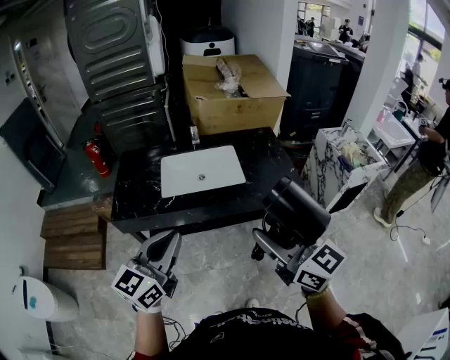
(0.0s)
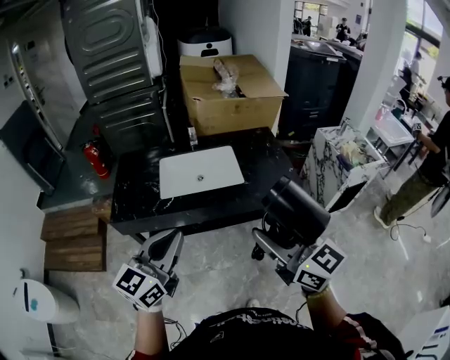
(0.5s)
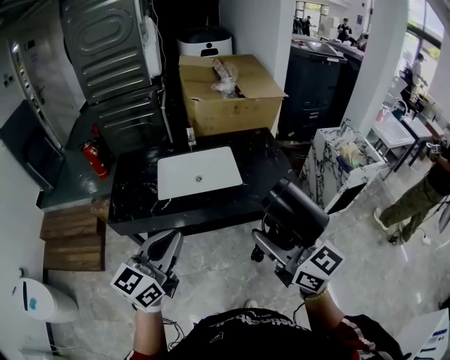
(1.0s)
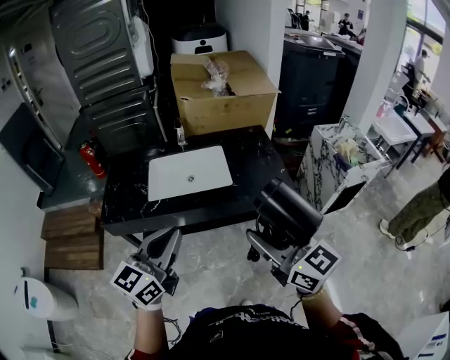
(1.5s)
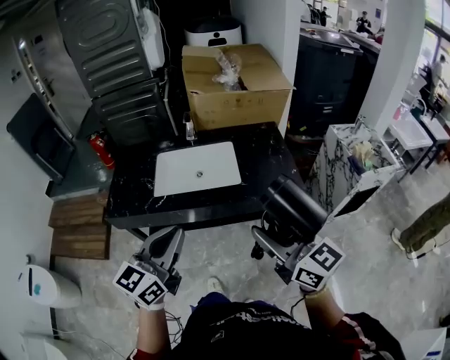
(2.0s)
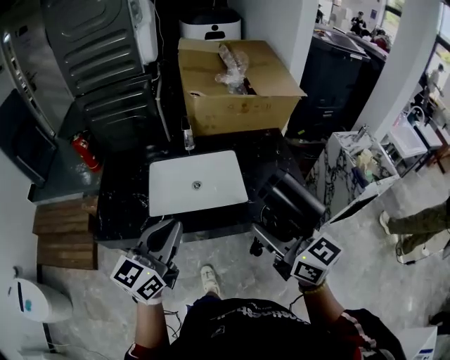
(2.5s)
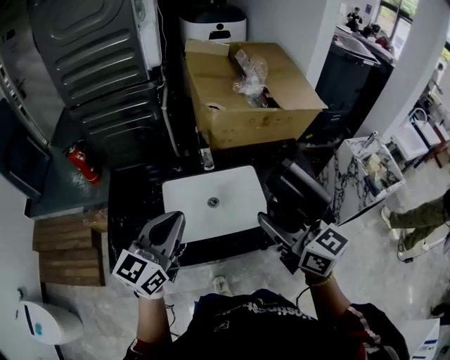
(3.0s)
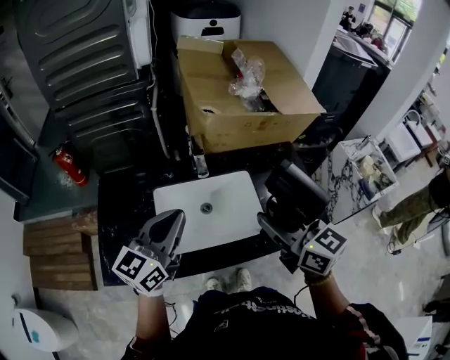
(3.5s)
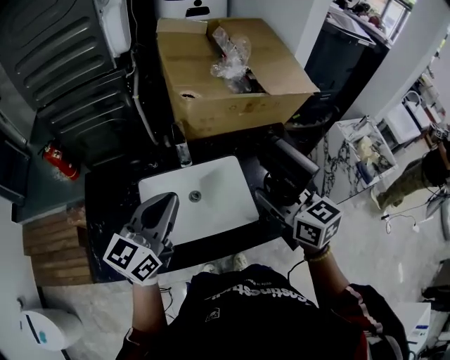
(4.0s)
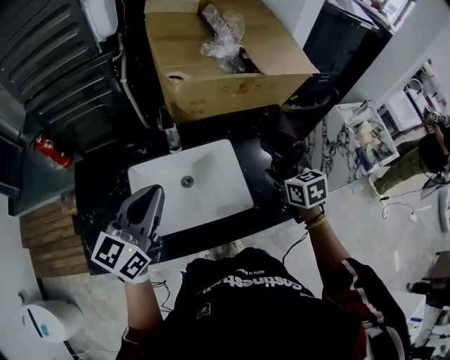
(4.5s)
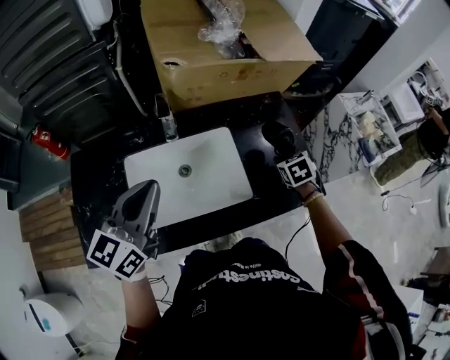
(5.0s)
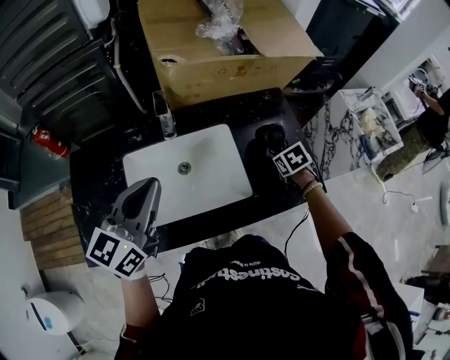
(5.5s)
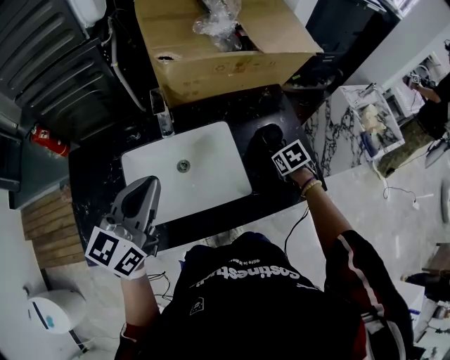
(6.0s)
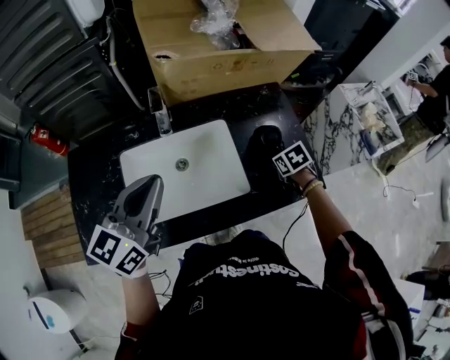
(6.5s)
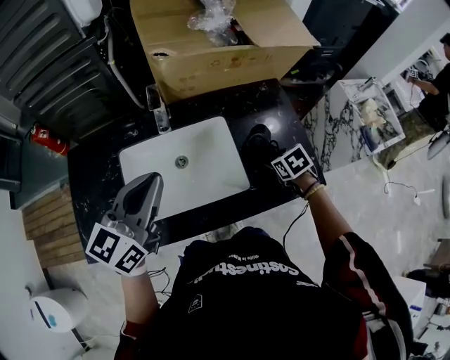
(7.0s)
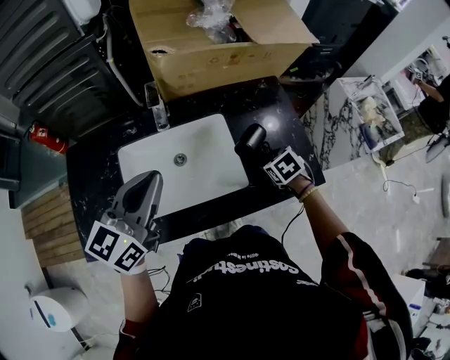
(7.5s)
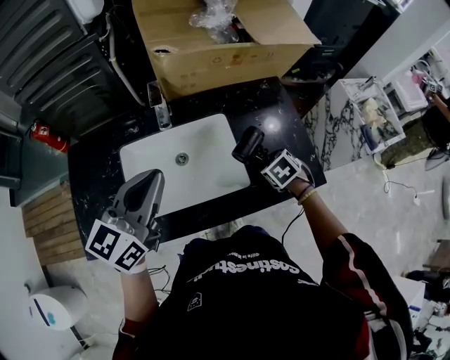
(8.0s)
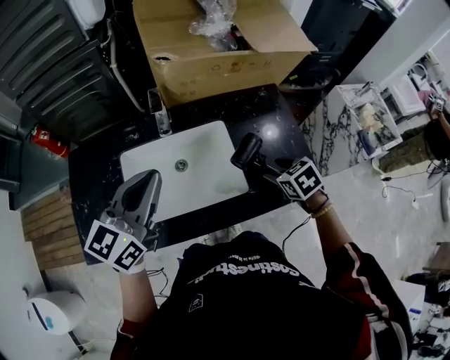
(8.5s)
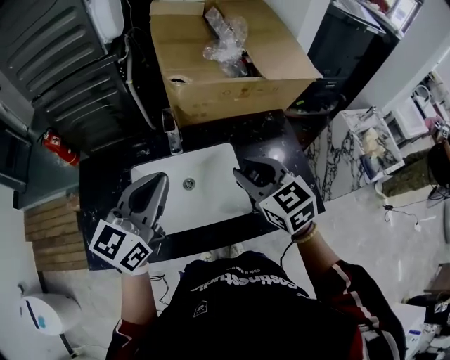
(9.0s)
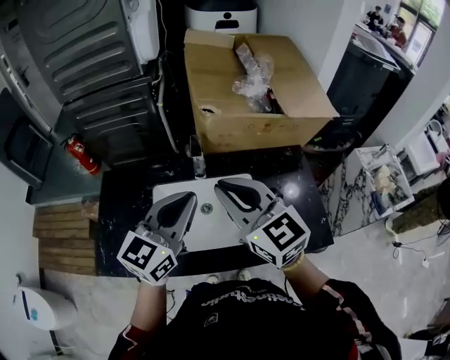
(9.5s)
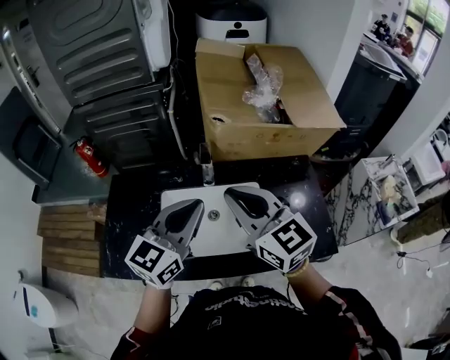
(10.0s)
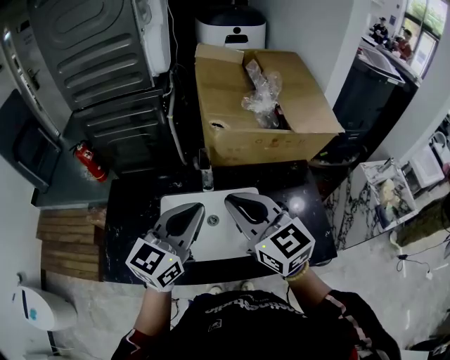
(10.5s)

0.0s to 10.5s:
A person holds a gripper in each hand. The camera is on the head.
0.0s to 2.0s: The left gripper travels to the right by about 10 cm. The right gripper travels to the right and forward by some 10 cm.
2.0s to 4.0s: The pair of grippers is taken forward, about 40 cm. The right gripper changes its angle by roughly 20 degrees.
4.0s to 6.5s: The right gripper is displaced downward and to the right by approximately 30 cm, and tilts its fingers roughly 50 degrees downward.
6.5s to 8.5s: The right gripper heads upward and backward, covering roughly 10 cm.
8.5s to 10.5s: The right gripper travels upward and to the left by some 35 cm, tips its fingers upward by some 50 degrees, and closes its fingers. Meanwhile the left gripper travels upward by roughly 5 cm.

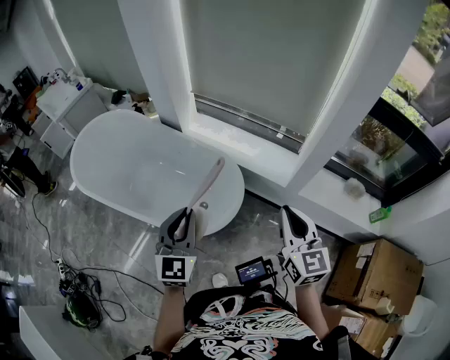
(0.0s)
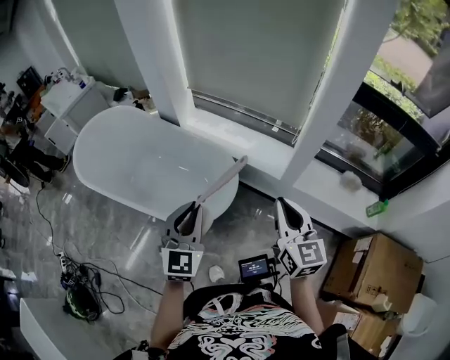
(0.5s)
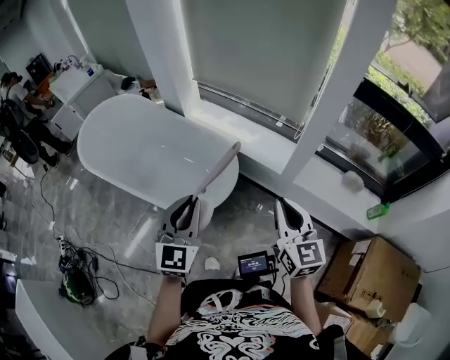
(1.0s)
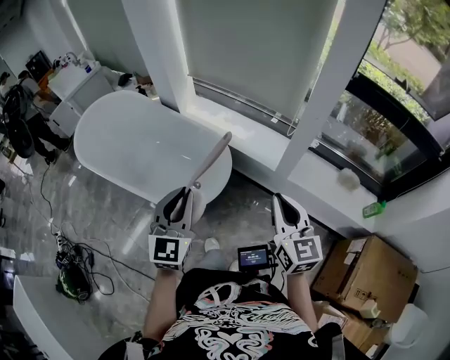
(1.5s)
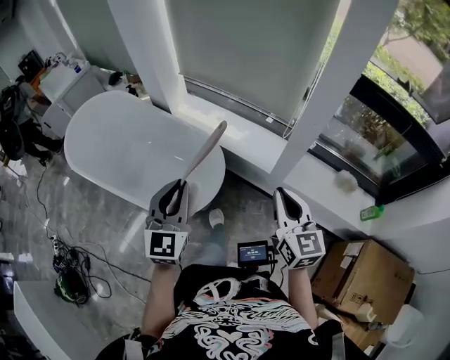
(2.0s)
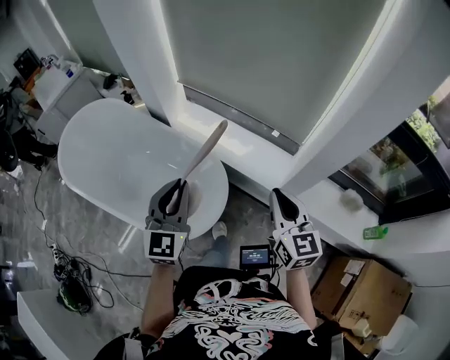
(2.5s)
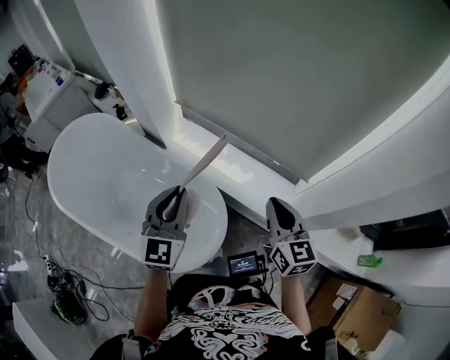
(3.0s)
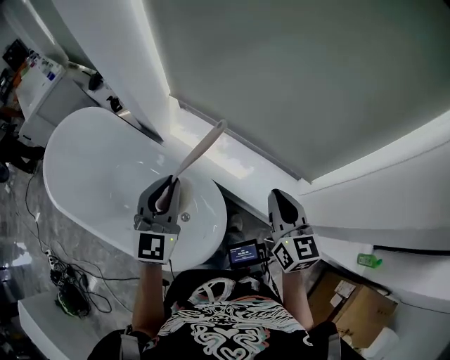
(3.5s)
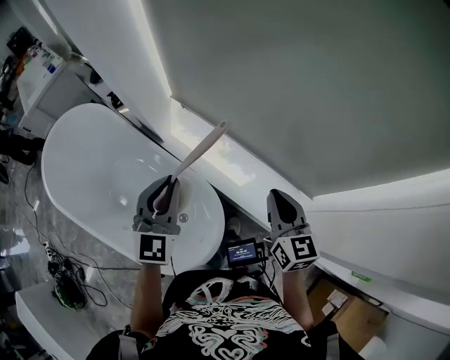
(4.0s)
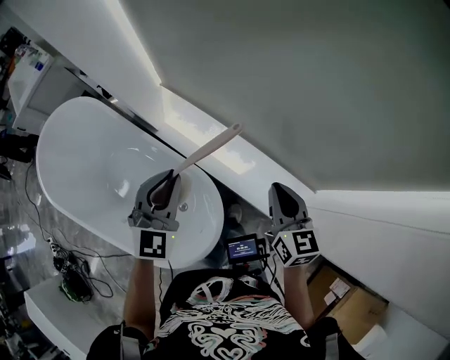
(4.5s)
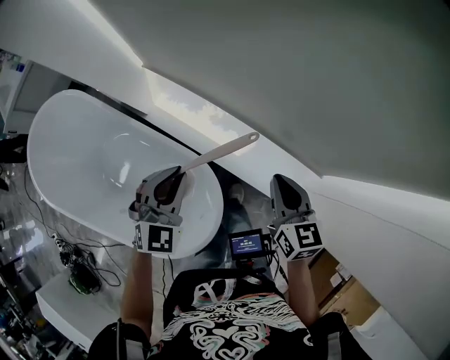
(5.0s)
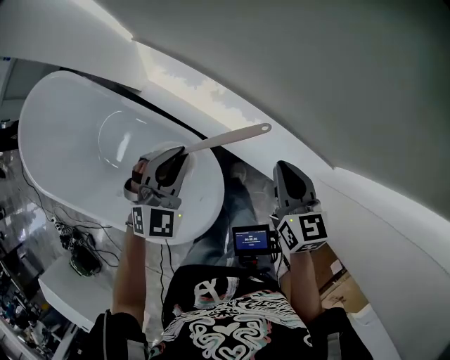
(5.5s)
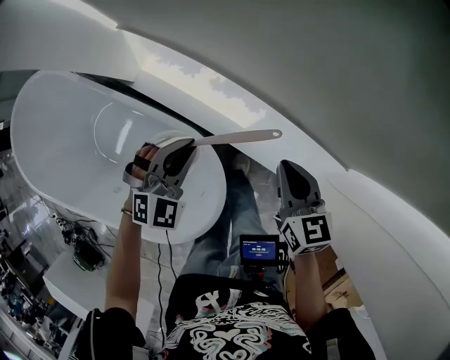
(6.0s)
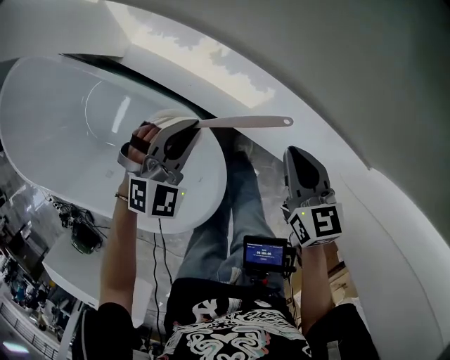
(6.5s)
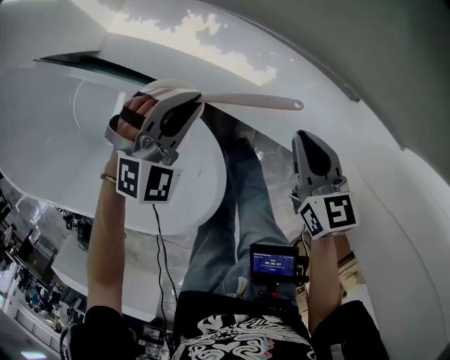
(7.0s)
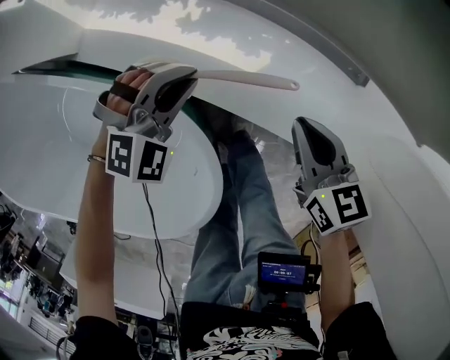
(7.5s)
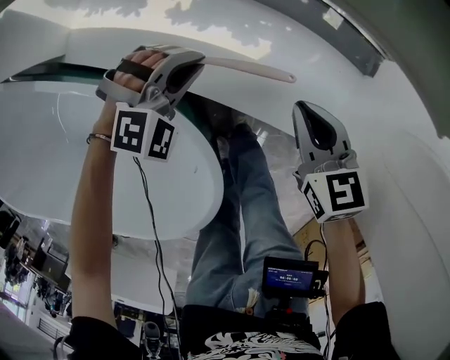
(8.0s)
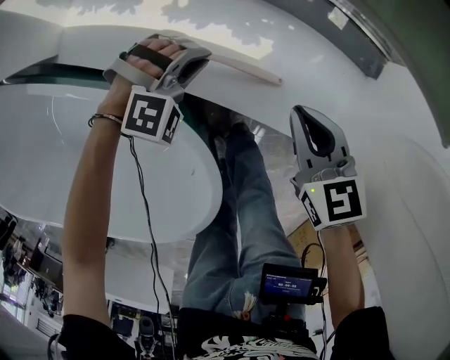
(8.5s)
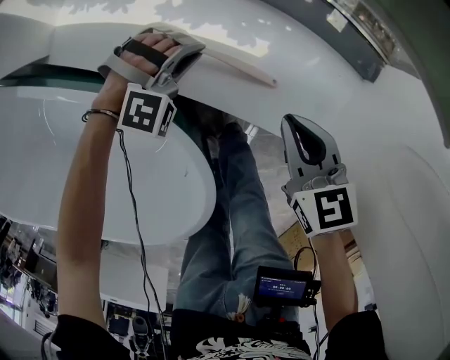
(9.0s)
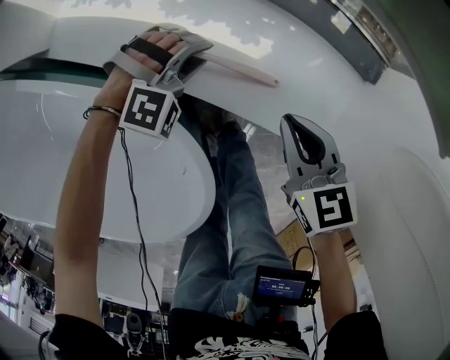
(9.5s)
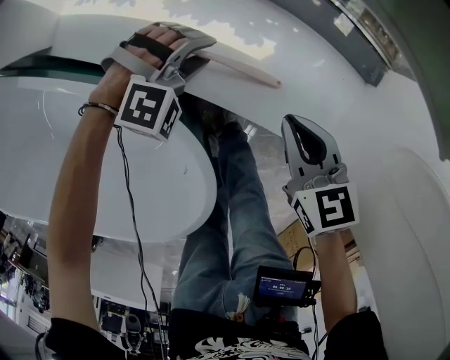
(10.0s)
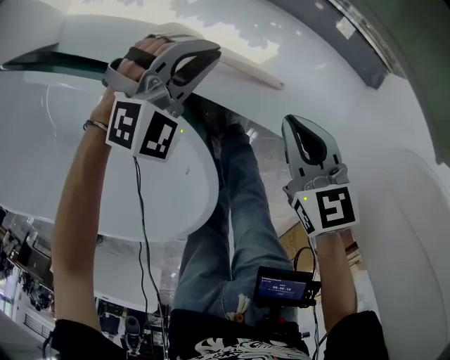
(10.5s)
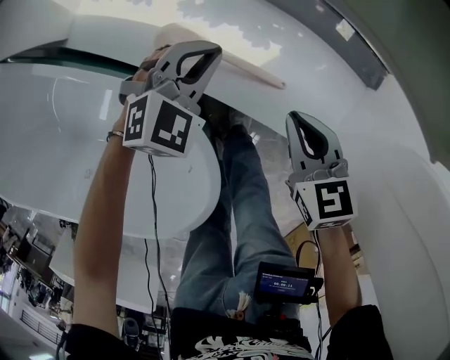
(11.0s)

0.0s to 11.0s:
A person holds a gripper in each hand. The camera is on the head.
0.0s to 2.0s: The grippers both shift to the right by some 15 cm.
2.0s to 3.5s: The two grippers travel together, forward, roughly 40 cm.
3.5s to 5.5s: Both grippers move downward and forward, some 25 cm. The left gripper rotates approximately 40 degrees.
5.5s to 7.5s: The two grippers go approximately 25 cm downward. The left gripper turns by about 30 degrees.
7.5s to 9.0s: The right gripper shifts about 5 cm downward. Meanwhile the left gripper goes roughly 15 cm downward, and rotates some 20 degrees.
9.0s to 11.0s: The left gripper moves upward, approximately 10 cm, twists approximately 50 degrees counterclockwise, seen from behind, and opens and closes again.

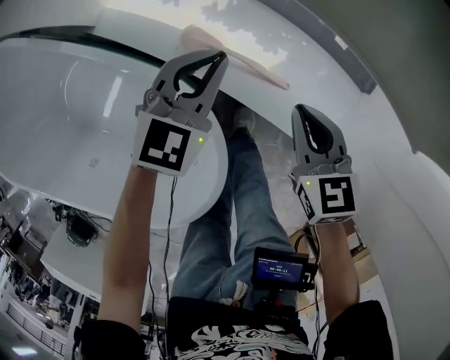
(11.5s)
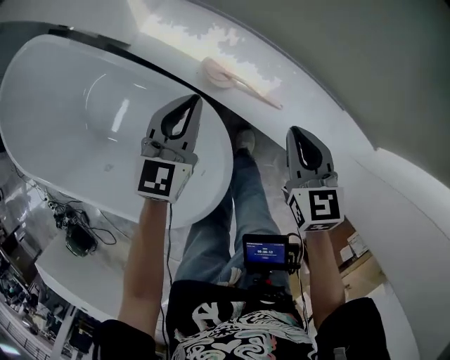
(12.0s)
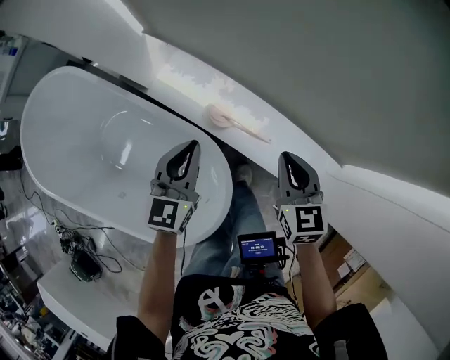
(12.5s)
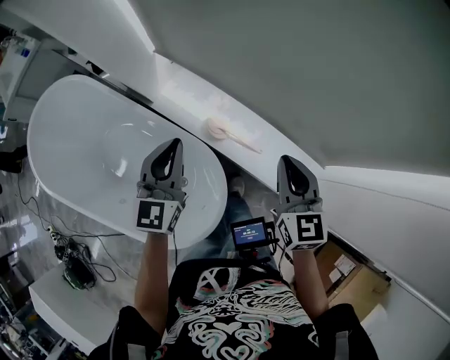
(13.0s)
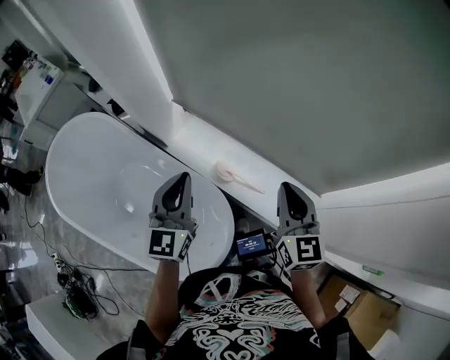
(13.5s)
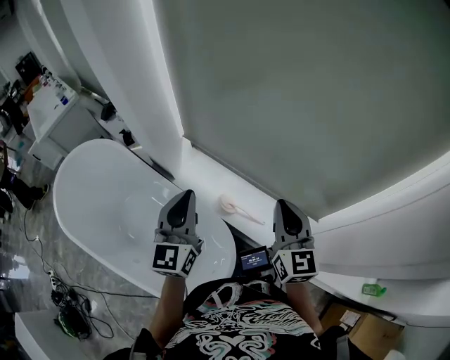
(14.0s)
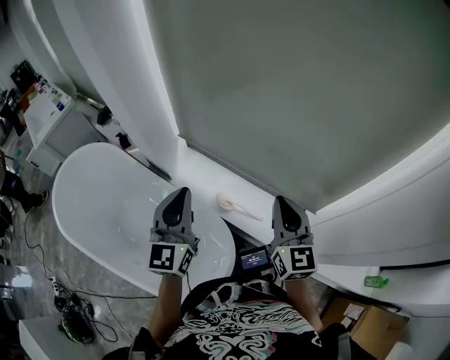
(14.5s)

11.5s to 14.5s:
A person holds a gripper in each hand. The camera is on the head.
11.5s to 13.0s: The right gripper is displaced upward by roughly 35 cm, and swivels about 20 degrees, while the left gripper goes approximately 35 cm upward and to the left, and rotates about 30 degrees.
13.0s to 14.5s: The two grippers go approximately 20 cm upward.

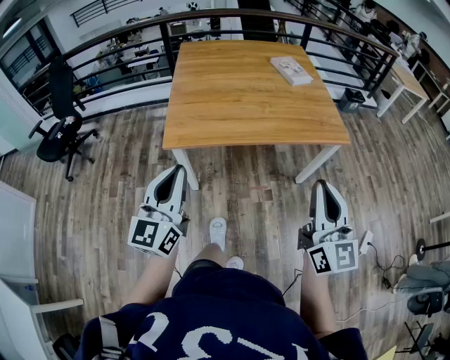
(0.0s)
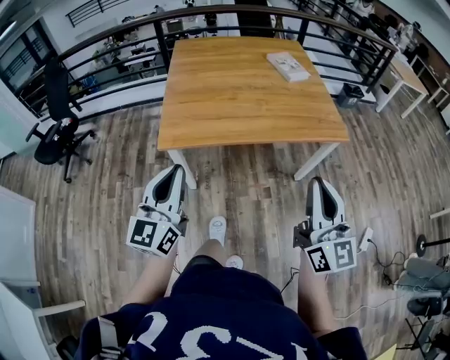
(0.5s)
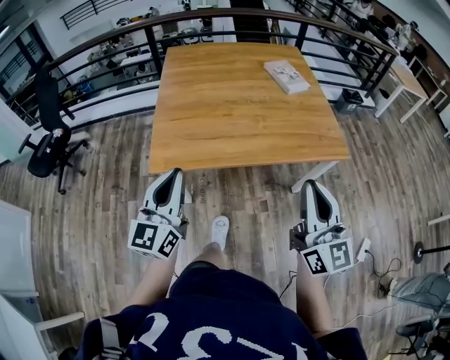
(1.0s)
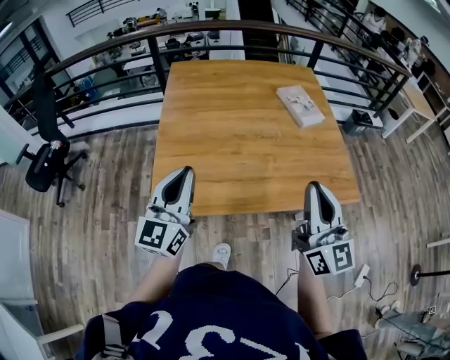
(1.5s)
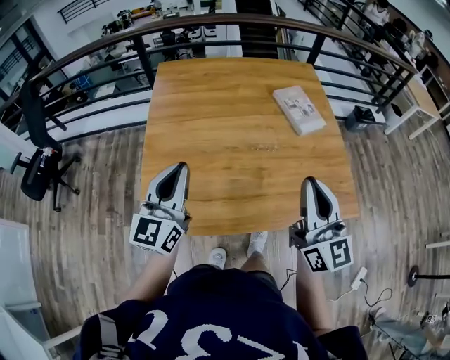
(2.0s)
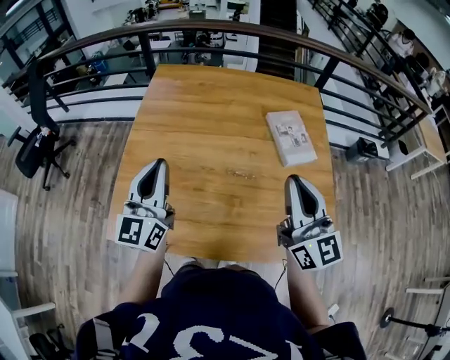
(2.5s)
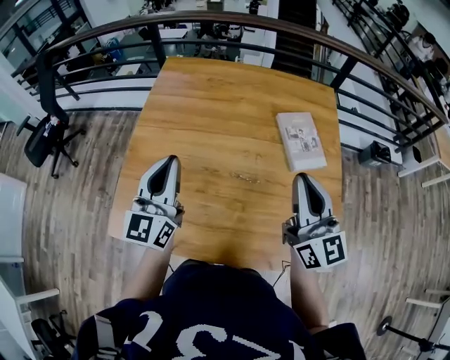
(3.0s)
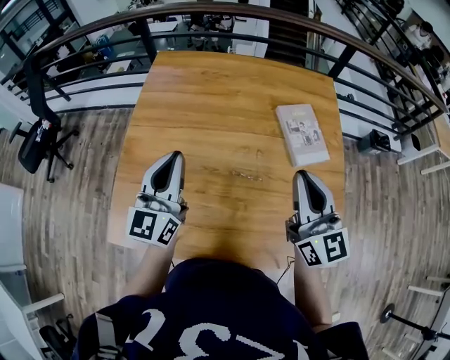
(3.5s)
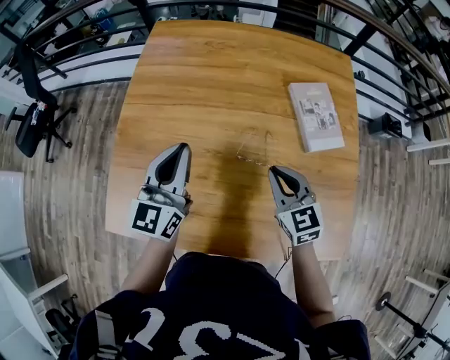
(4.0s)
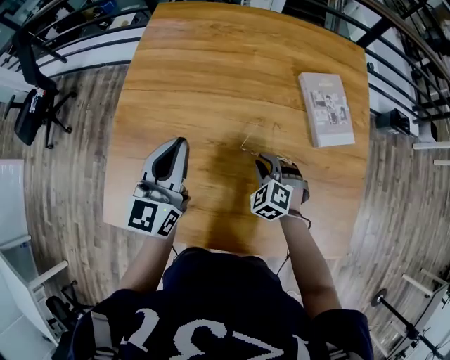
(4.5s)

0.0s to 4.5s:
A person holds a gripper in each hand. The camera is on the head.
0.0s to 2.0s: Both grippers are carried forward, about 40 cm.
2.0s to 4.5s: The right gripper moves downward and forward, some 40 cm, and points its fingers roughly 60 degrees further downward. The left gripper travels forward, downward and to the right by some 20 cm.
